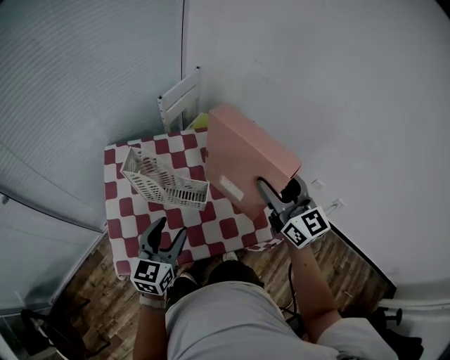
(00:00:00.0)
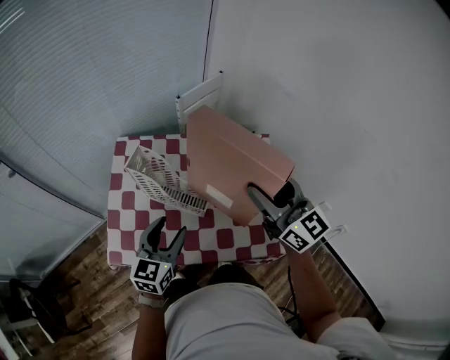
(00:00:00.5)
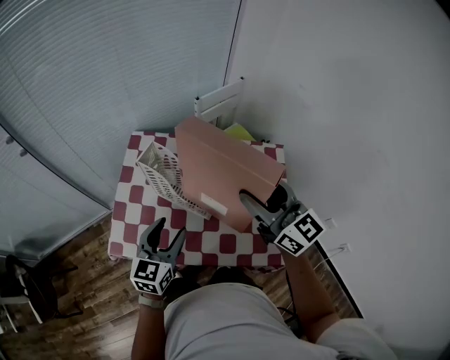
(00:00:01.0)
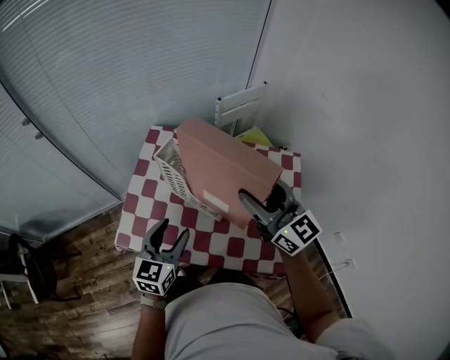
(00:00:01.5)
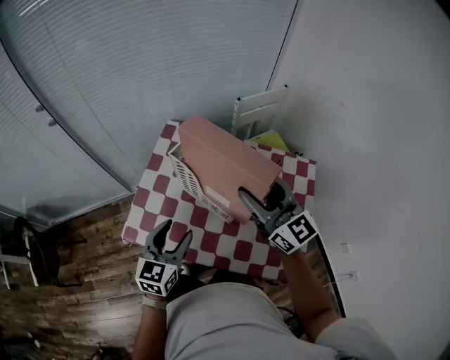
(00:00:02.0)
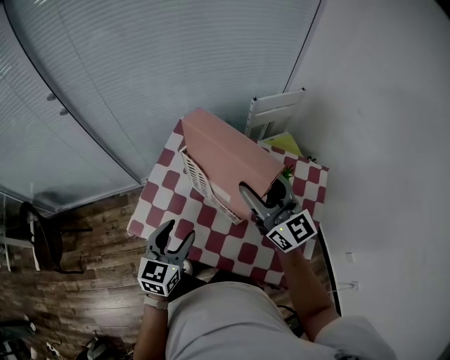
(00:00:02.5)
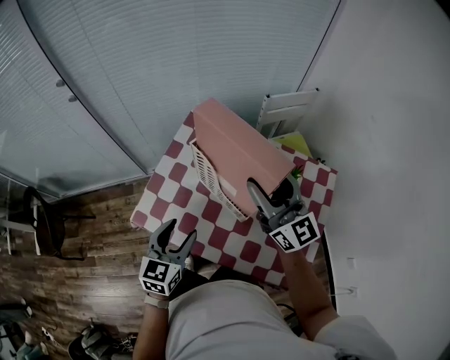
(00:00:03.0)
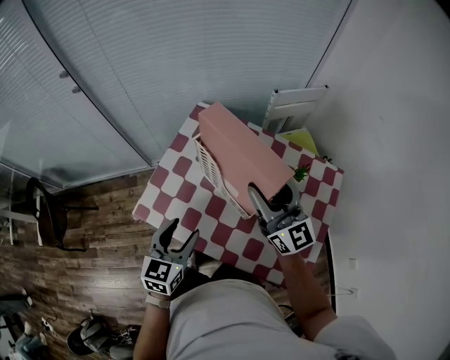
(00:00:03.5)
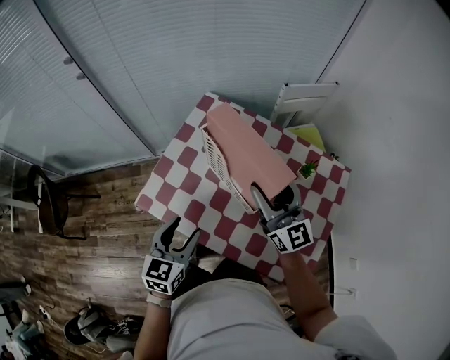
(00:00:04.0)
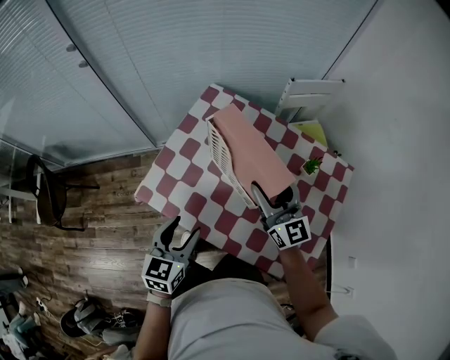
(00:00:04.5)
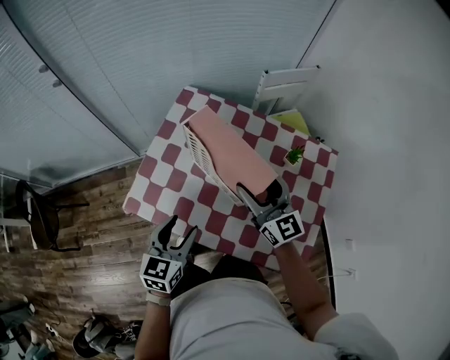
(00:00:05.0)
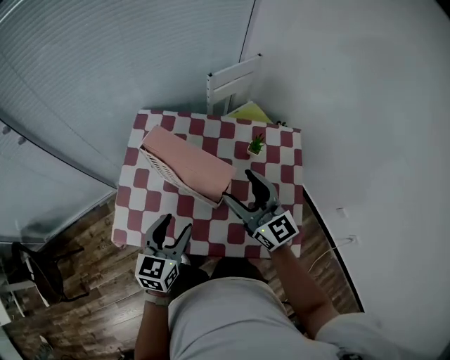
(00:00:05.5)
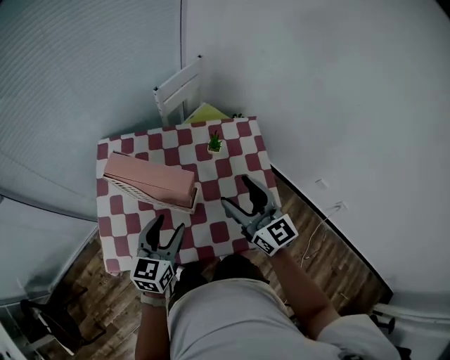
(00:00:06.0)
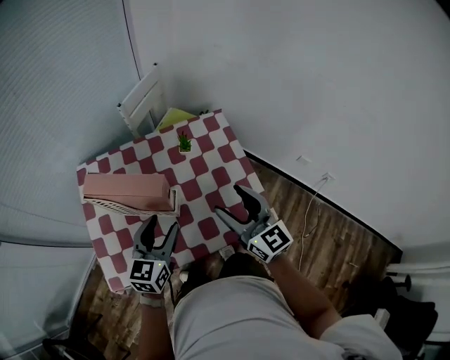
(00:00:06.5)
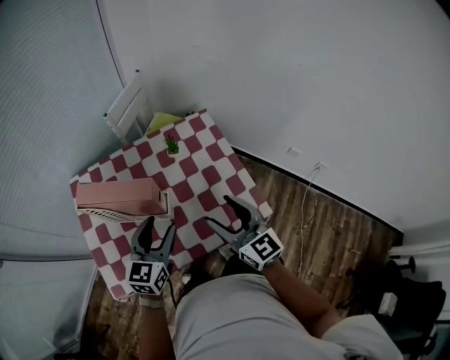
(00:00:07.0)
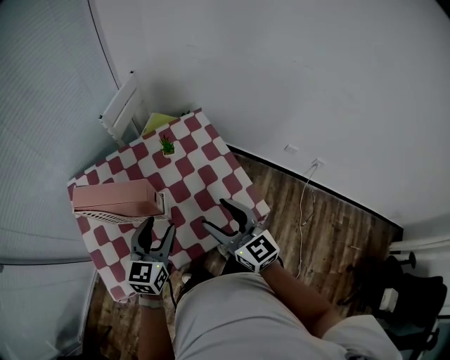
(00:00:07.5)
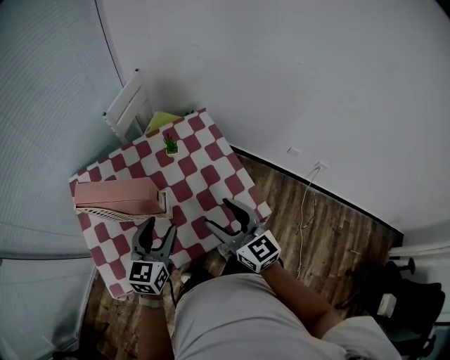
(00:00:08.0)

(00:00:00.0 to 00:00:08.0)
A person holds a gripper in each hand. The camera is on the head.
00:00:00.0 - 00:00:02.0: The right gripper shifts by about 15 cm, and turns by some 40 degrees. Meanwhile the left gripper changes its angle by about 30 degrees.
00:00:02.0 - 00:00:04.0: The left gripper changes place by approximately 5 cm, while the right gripper shifts approximately 10 cm downward.
00:00:04.0 - 00:00:06.0: The left gripper moves approximately 10 cm, and changes its angle by approximately 30 degrees, while the right gripper changes place by approximately 15 cm, and turns by approximately 30 degrees.
00:00:06.0 - 00:00:08.0: The right gripper travels backward by roughly 10 cm; the left gripper goes approximately 5 cm to the right.

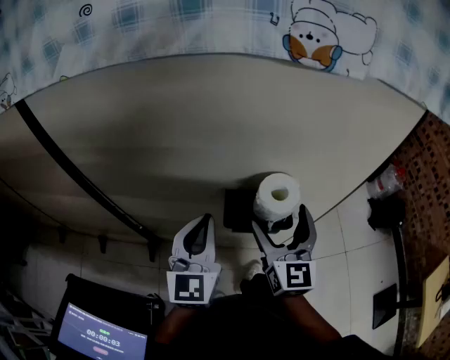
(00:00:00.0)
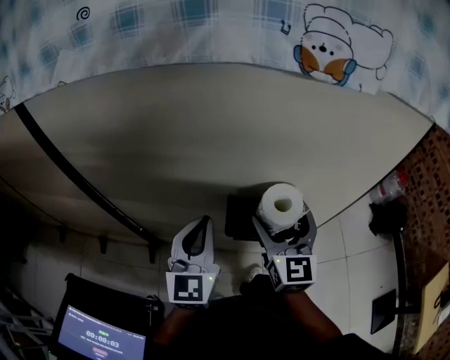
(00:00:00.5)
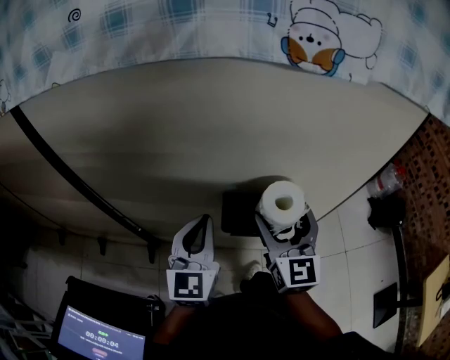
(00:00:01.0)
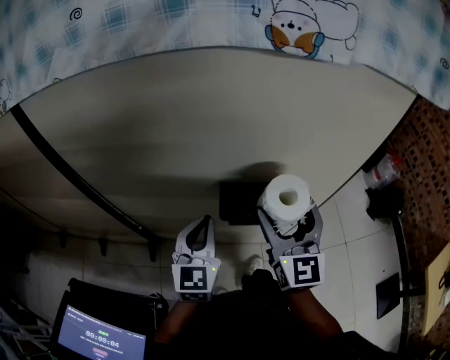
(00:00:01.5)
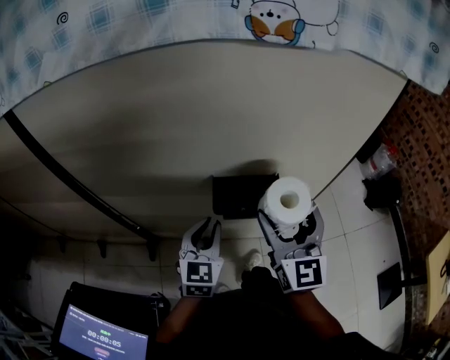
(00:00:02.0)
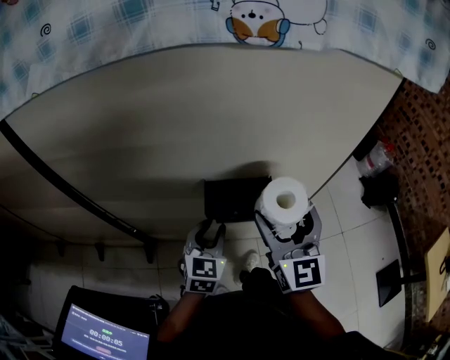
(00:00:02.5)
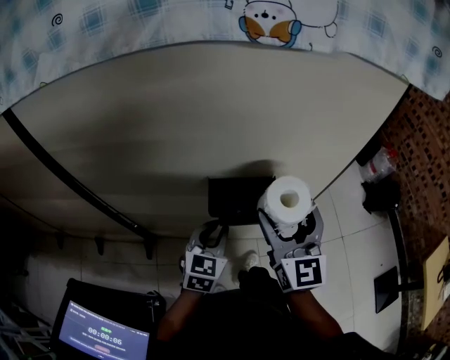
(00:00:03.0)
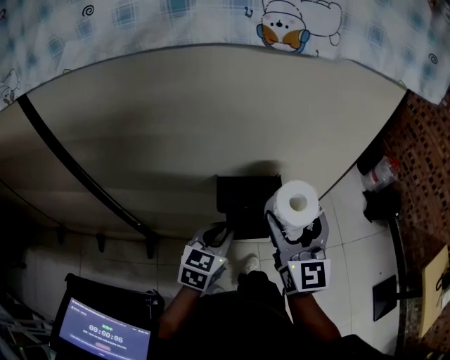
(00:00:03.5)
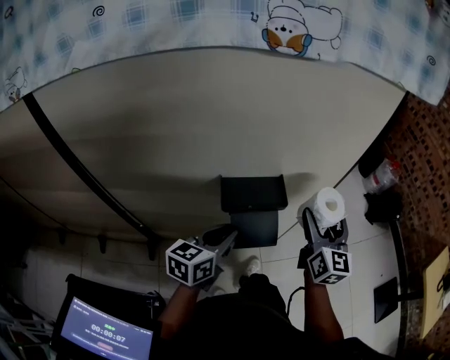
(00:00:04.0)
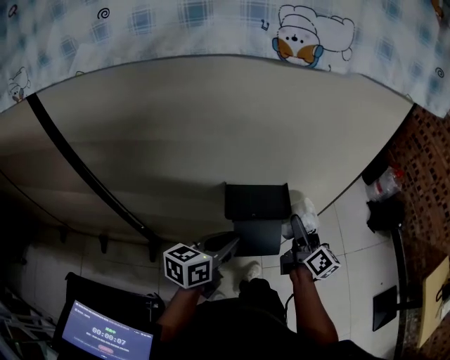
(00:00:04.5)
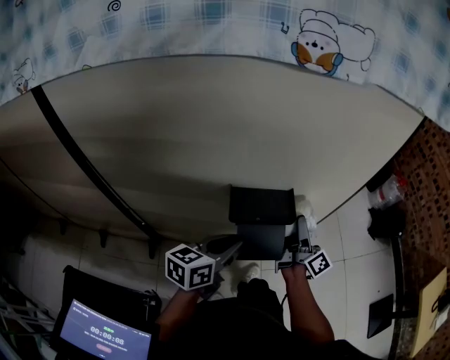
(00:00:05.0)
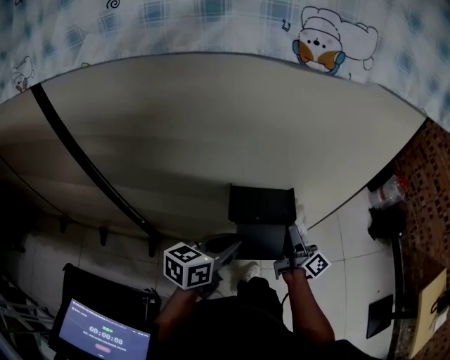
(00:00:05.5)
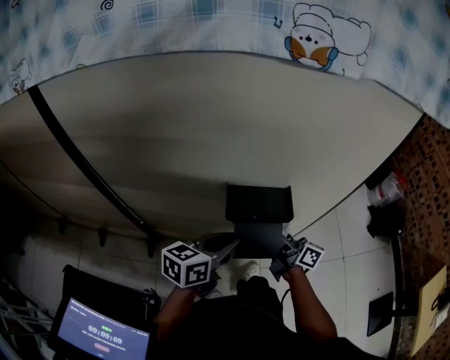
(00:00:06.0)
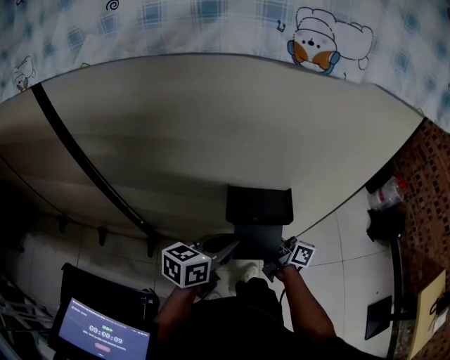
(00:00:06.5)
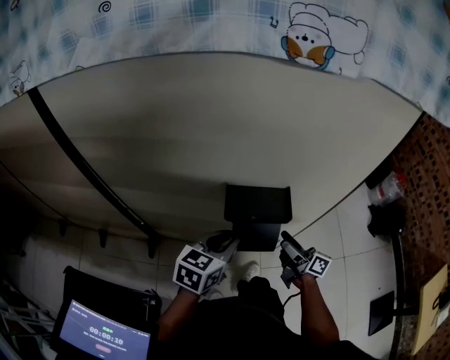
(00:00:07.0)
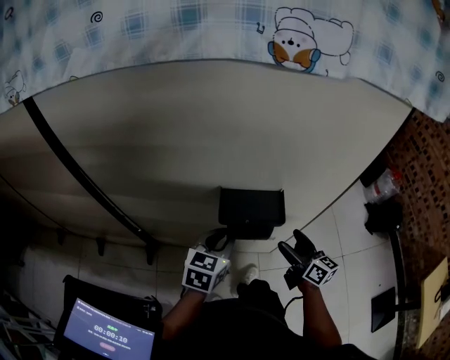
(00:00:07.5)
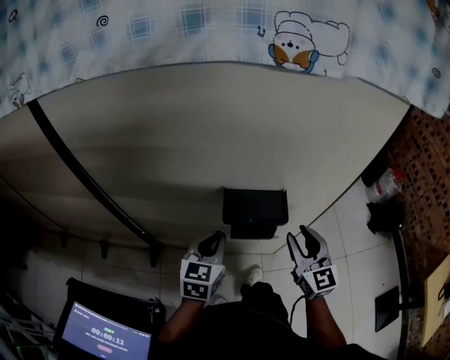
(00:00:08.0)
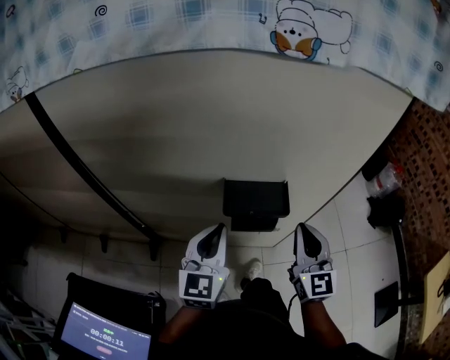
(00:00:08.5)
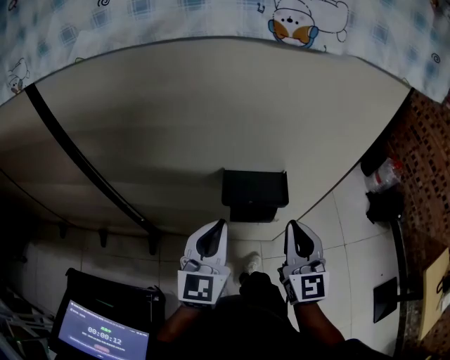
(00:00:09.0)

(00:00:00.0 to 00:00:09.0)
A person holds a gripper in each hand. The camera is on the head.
00:00:00.0 - 00:00:02.0: The right gripper changes place by approximately 5 cm, while the left gripper moves downward, roughly 10 cm.
00:00:02.0 - 00:00:04.5: The right gripper is displaced downward, to the right and forward by approximately 15 cm, and rotates around the line of its fingers by roughly 50 degrees, clockwise from behind. Meanwhile the left gripper changes place by about 5 cm, and turns by roughly 40 degrees.
00:00:04.5 - 00:00:07.0: The left gripper turns by approximately 20 degrees. The right gripper heads downward, covering about 10 cm, reaches some 15 cm to the left, then returns, and swivels approximately 40 degrees.
00:00:07.0 - 00:00:09.0: The right gripper is displaced upward by roughly 20 cm, rotates around the line of its fingers by about 70 degrees, counterclockwise from behind, and closes; the left gripper is displaced upward by some 10 cm, and changes its angle by some 30 degrees.

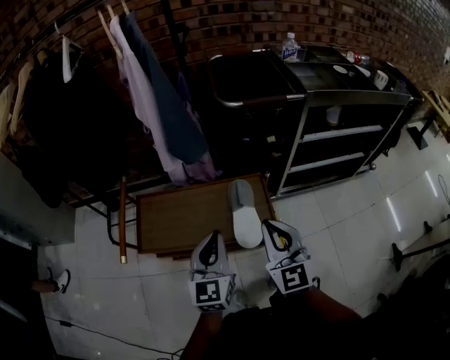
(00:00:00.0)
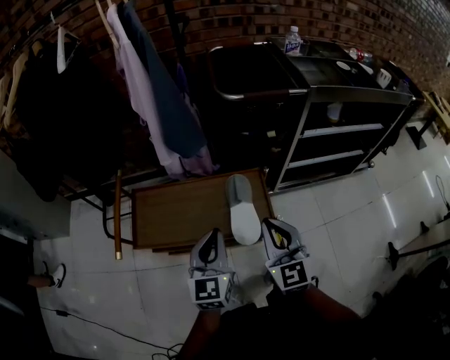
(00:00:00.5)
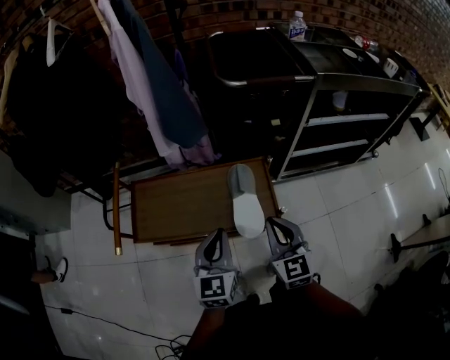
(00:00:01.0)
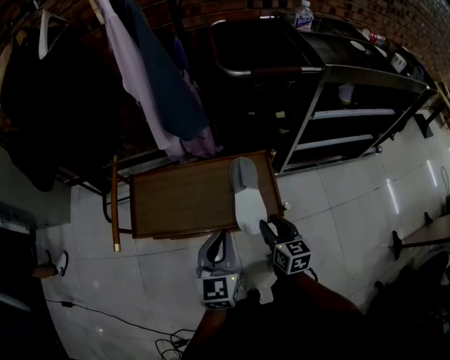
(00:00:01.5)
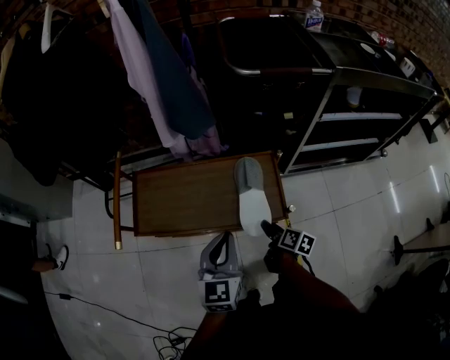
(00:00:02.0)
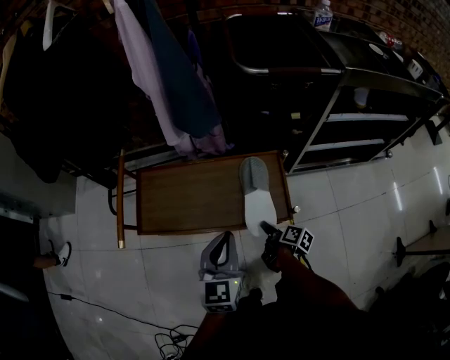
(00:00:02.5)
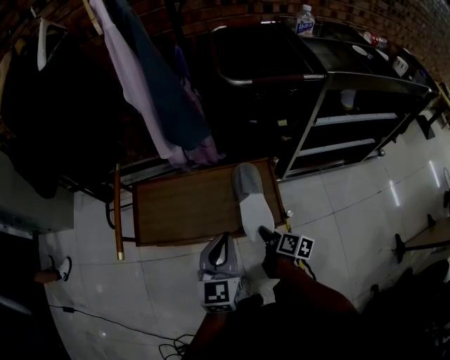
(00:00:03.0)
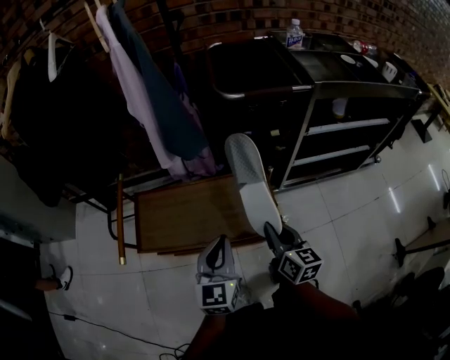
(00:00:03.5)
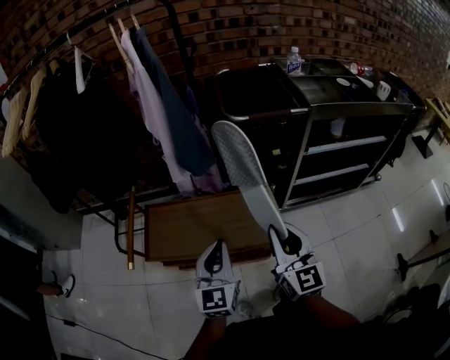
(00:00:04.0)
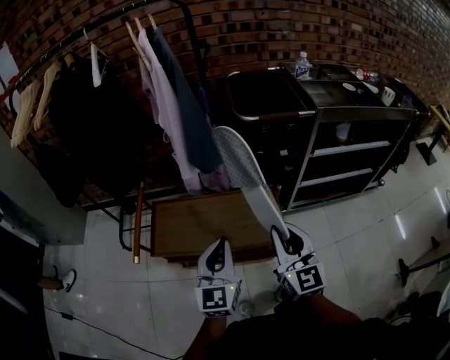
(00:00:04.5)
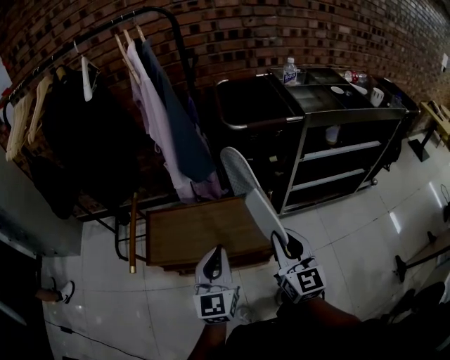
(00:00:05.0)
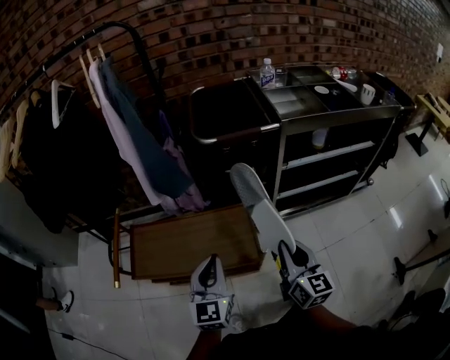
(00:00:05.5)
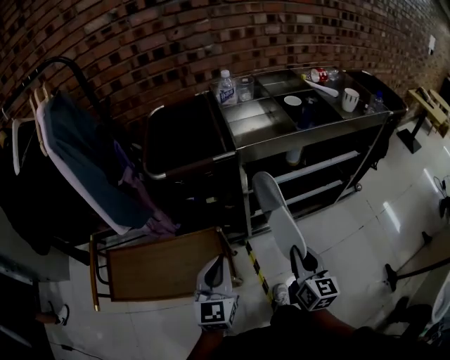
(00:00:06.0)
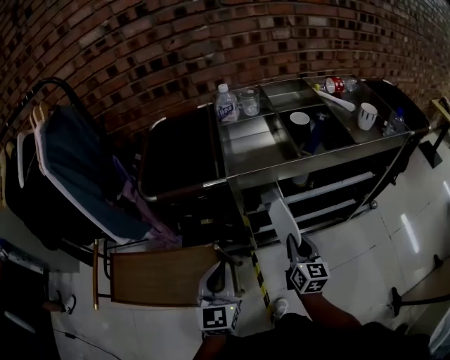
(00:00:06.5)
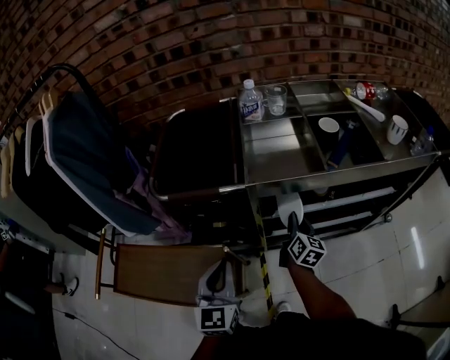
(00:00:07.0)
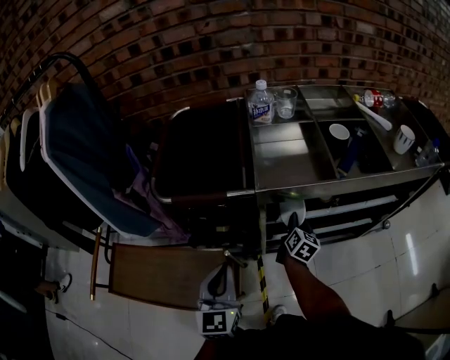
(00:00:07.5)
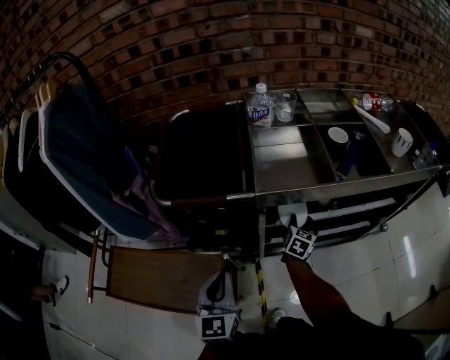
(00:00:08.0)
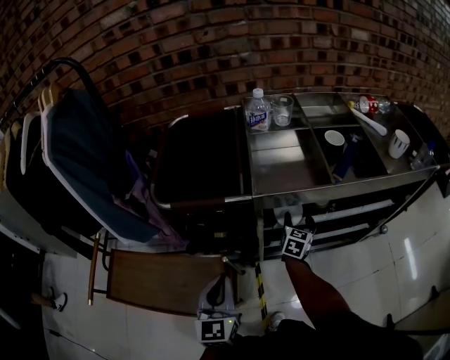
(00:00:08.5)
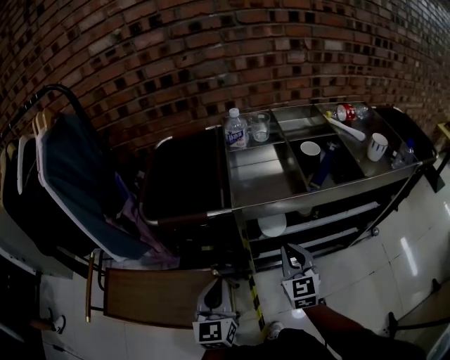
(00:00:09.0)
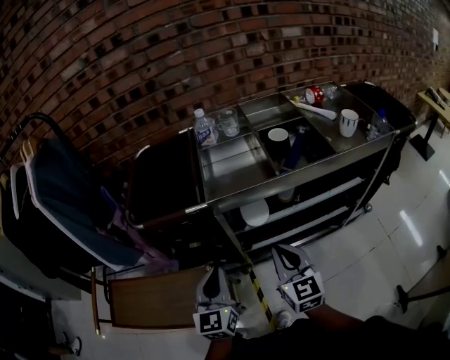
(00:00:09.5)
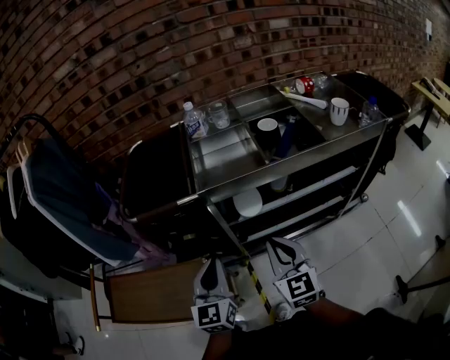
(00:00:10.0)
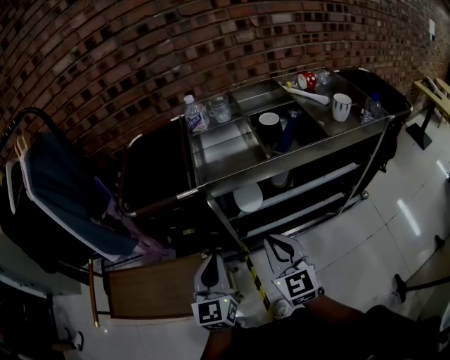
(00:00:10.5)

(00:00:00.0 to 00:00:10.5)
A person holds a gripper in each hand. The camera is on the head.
00:00:00.0 - 00:00:02.0: The left gripper shifts roughly 10 cm downward, while the right gripper heads downward, covering roughly 30 cm, rotates around the line of its fingers by roughly 70 degrees, clockwise from behind, and opens its fingers.
00:00:02.0 - 00:00:04.0: The right gripper heads upward, covering some 35 cm, tilts its fingers about 40 degrees upward, and closes. Meanwhile the left gripper shifts approximately 10 cm upward.
00:00:04.0 - 00:00:06.5: The grippers both shift to the right and forward by some 40 cm. The right gripper swivels approximately 20 degrees.
00:00:06.5 - 00:00:08.5: The right gripper shifts some 20 cm forward, changes its angle by about 20 degrees, and opens its fingers, while the left gripper changes place by roughly 5 cm.
00:00:08.5 - 00:00:10.5: The left gripper shifts approximately 10 cm to the right, while the right gripper heads backward and upward, covering approximately 30 cm, turns by approximately 40 degrees, and closes its fingers.
